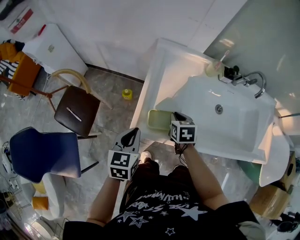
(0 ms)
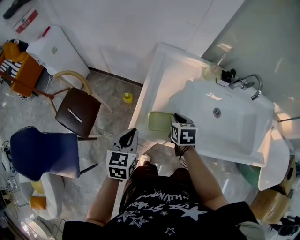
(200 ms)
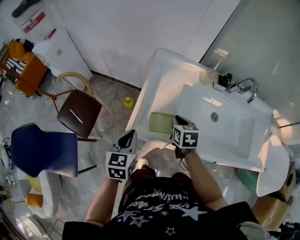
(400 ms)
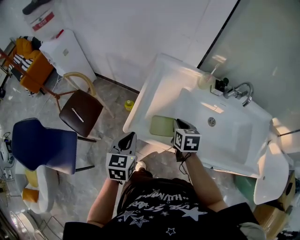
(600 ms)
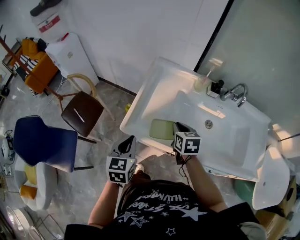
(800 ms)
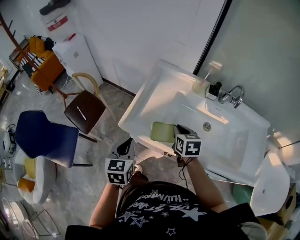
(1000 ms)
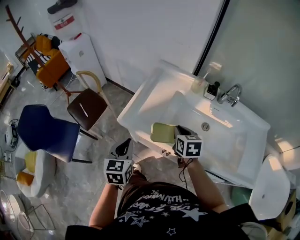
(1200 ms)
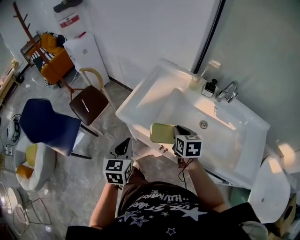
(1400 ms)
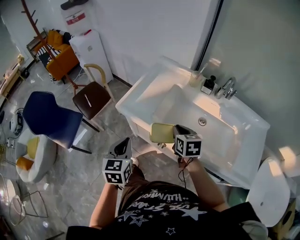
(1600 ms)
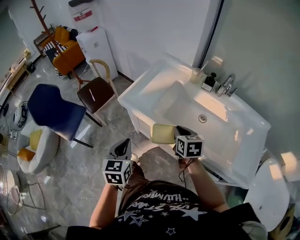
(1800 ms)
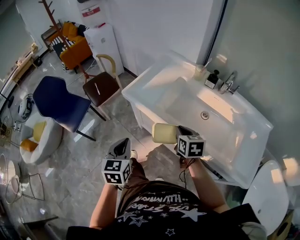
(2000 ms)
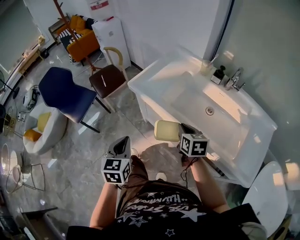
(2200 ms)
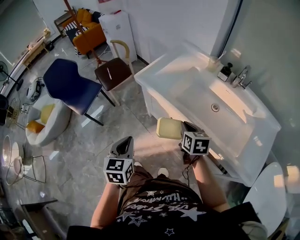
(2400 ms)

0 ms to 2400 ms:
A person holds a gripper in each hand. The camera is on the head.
0 ms to 1200 ms: The right gripper goes some 20 cm to the right, upward and backward. The left gripper heads backward, to the right and upward, covering approximately 20 cm, and changes its angle by roughly 20 degrees.
1200 ms to 2400 ms: The grippers both shift backward by about 20 cm.

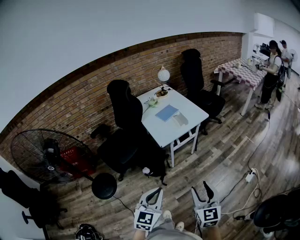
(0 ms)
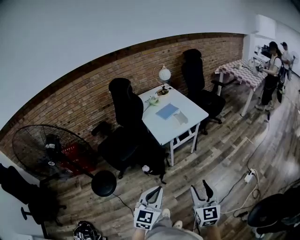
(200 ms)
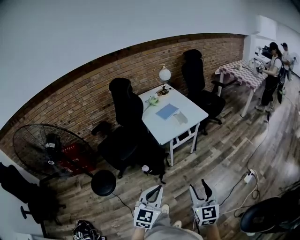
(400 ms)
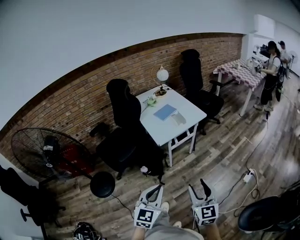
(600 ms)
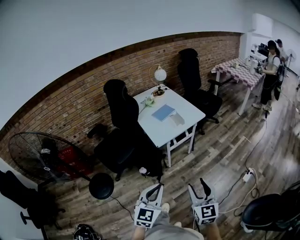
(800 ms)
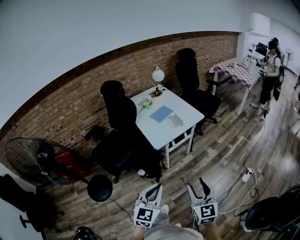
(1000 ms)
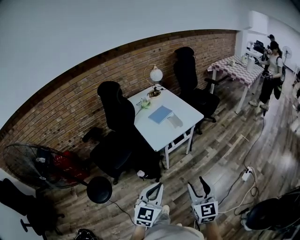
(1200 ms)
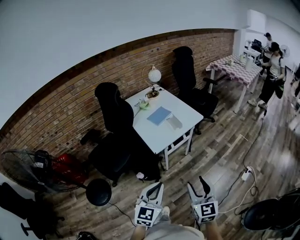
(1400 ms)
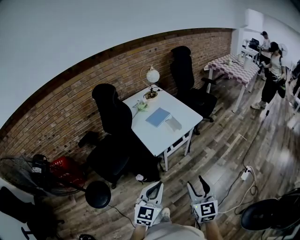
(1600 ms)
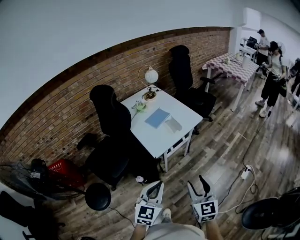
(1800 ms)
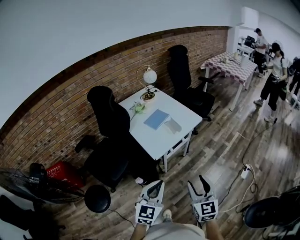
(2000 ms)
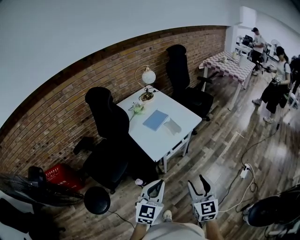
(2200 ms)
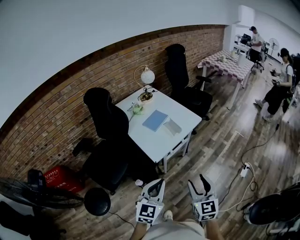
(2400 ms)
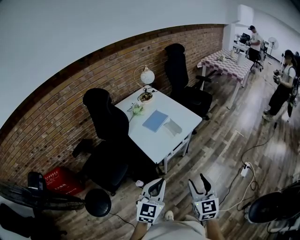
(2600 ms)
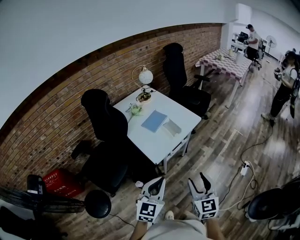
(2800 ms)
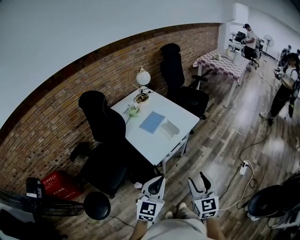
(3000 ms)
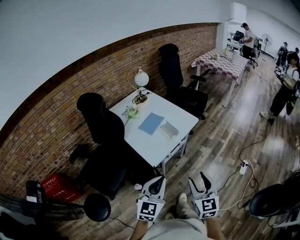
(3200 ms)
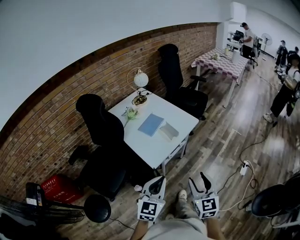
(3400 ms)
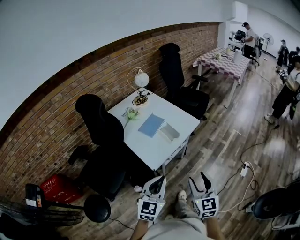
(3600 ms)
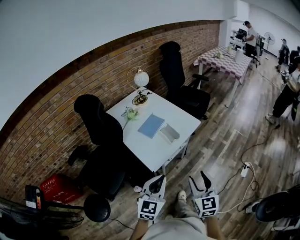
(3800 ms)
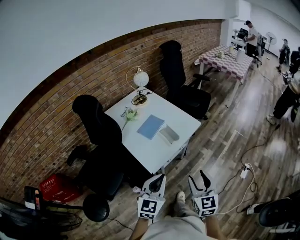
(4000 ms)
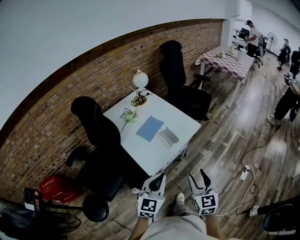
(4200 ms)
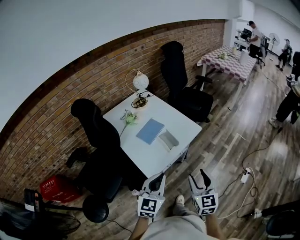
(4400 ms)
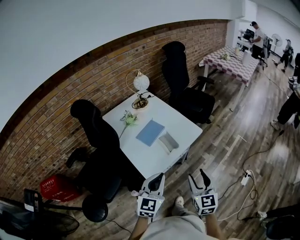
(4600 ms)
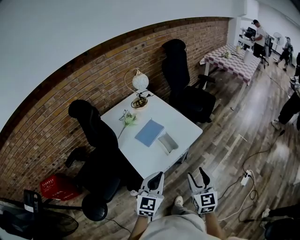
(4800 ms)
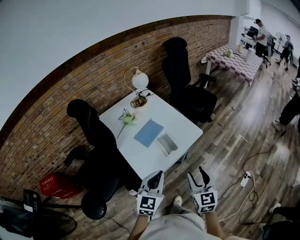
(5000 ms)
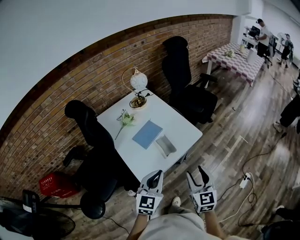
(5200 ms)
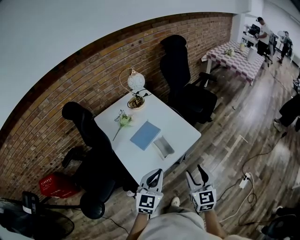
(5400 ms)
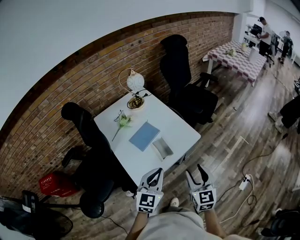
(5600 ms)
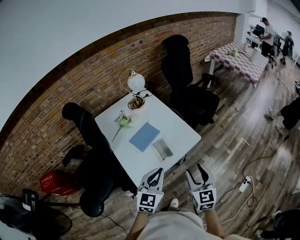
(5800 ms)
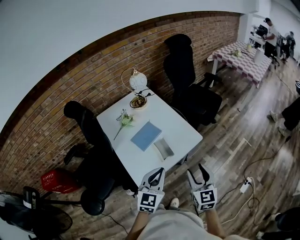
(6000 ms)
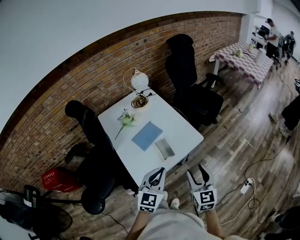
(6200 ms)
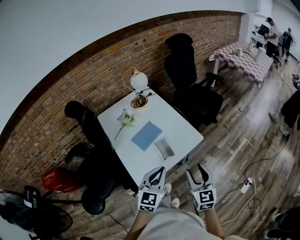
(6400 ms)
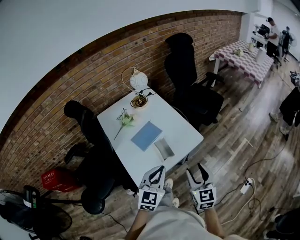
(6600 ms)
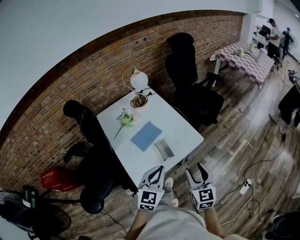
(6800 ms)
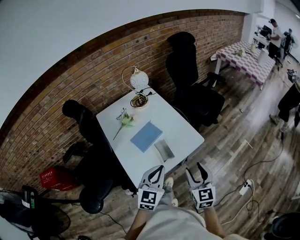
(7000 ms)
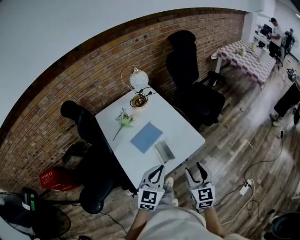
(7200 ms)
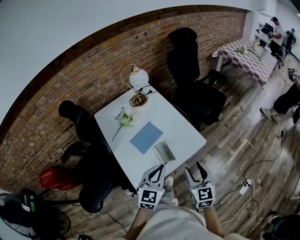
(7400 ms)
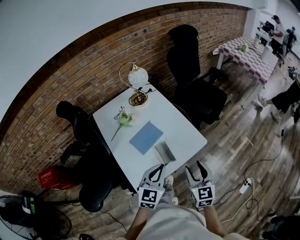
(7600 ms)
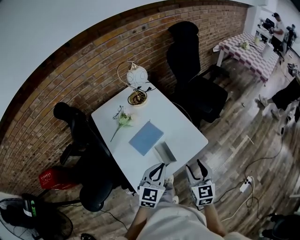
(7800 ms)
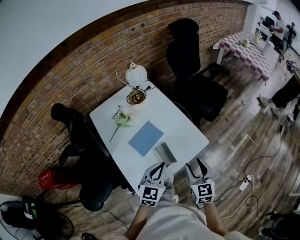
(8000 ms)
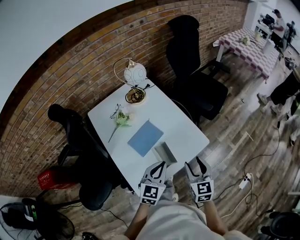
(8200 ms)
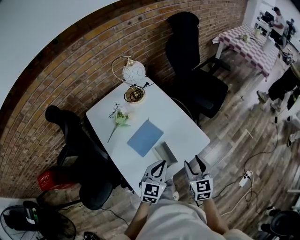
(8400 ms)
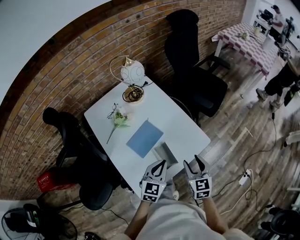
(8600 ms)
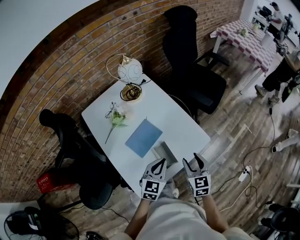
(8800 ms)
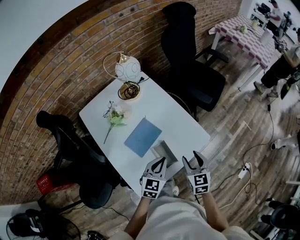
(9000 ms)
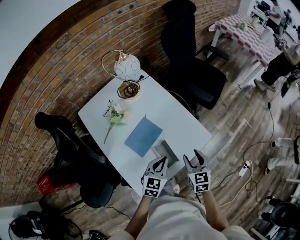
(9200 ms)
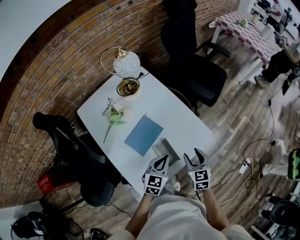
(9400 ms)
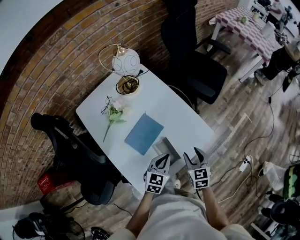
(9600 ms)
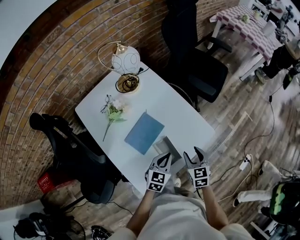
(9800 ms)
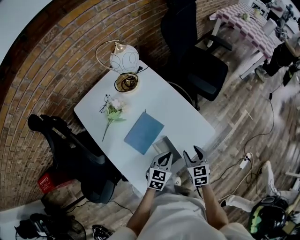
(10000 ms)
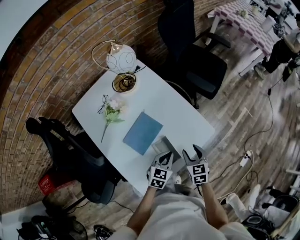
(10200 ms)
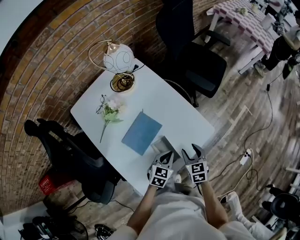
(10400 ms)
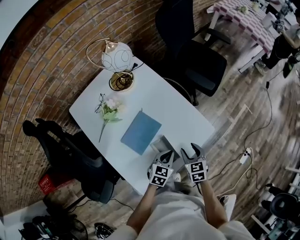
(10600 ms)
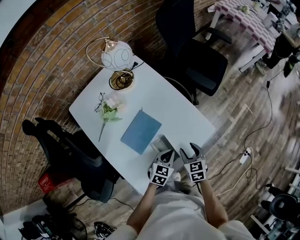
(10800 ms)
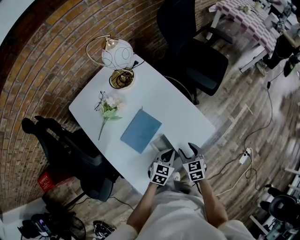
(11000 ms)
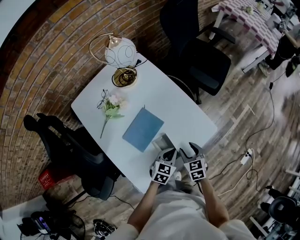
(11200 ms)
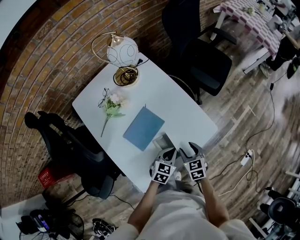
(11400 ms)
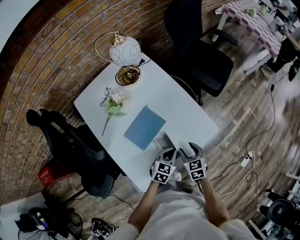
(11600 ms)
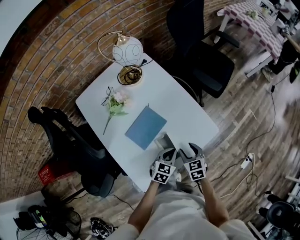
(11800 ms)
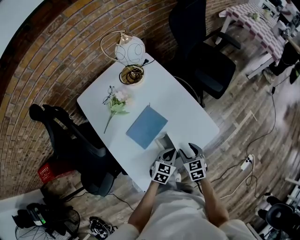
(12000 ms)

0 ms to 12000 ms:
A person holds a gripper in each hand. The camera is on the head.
0 ms to 1600 ms: Both grippers travel together forward, some 15 cm.
1600 ms to 3000 ms: Both grippers move forward, approximately 10 cm.
3000 ms to 4400 ms: The two grippers go some 15 cm forward.
4400 ms to 6000 ms: The left gripper goes about 15 cm forward and to the right. Meanwhile the right gripper shifts approximately 15 cm forward.
6000 ms to 7600 ms: The grippers both shift forward by about 10 cm.
7600 ms to 9000 ms: The right gripper is displaced forward and downward by some 15 cm, while the left gripper heads downward and forward, covering some 15 cm.
9000 ms to 10400 ms: Both grippers travel together downward, about 10 cm.
10400 ms to 12000 ms: The grippers stay close to where they were, moving slightly.

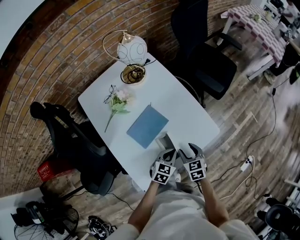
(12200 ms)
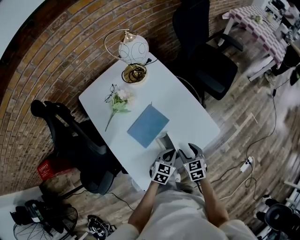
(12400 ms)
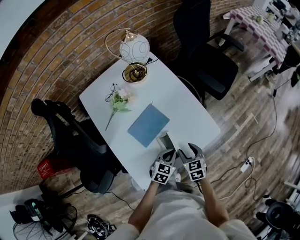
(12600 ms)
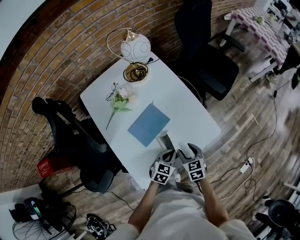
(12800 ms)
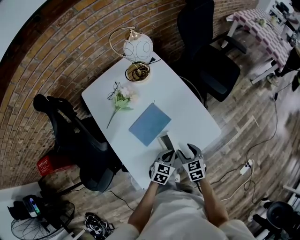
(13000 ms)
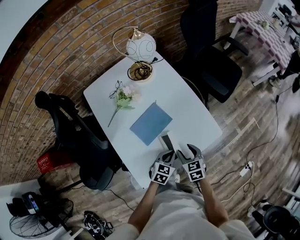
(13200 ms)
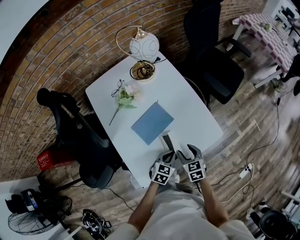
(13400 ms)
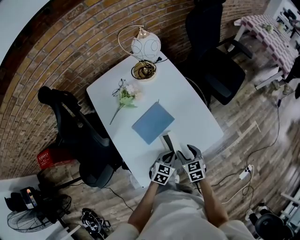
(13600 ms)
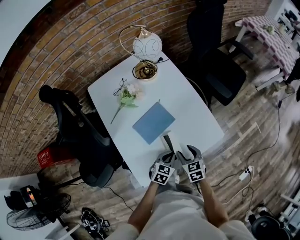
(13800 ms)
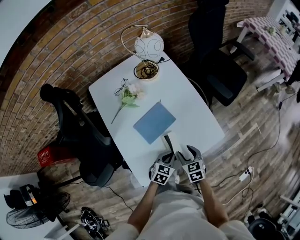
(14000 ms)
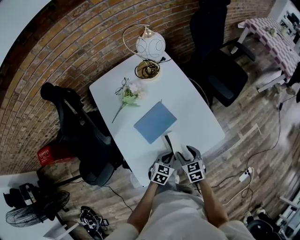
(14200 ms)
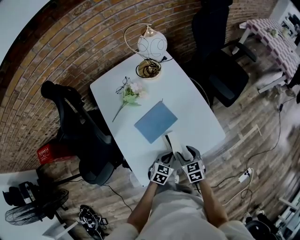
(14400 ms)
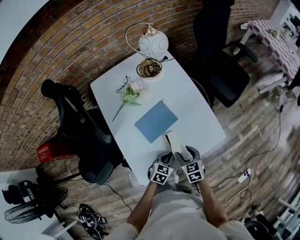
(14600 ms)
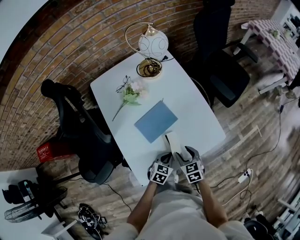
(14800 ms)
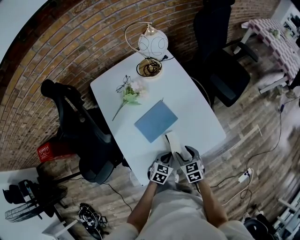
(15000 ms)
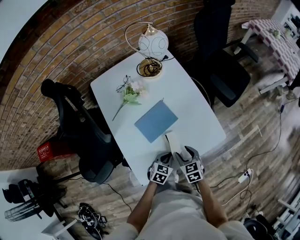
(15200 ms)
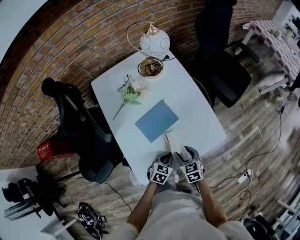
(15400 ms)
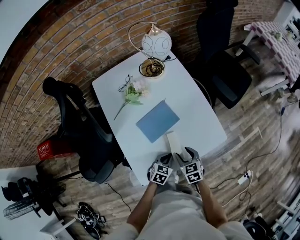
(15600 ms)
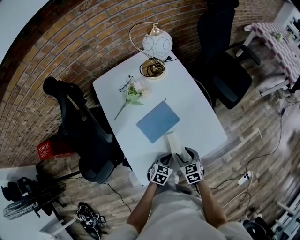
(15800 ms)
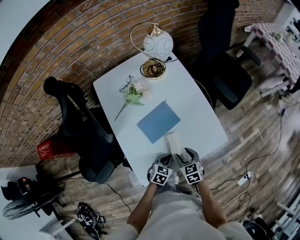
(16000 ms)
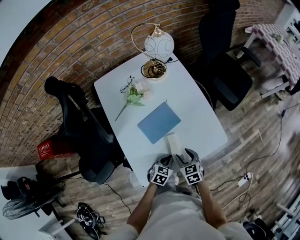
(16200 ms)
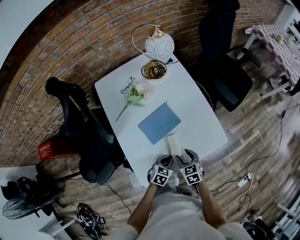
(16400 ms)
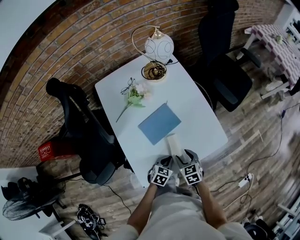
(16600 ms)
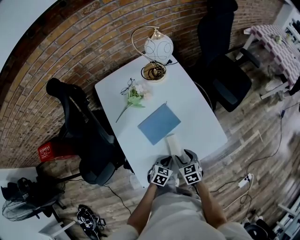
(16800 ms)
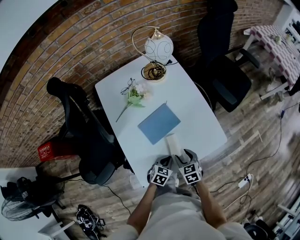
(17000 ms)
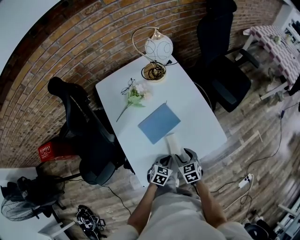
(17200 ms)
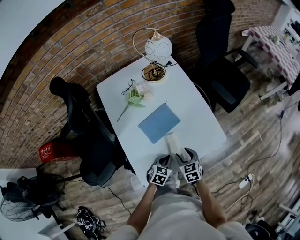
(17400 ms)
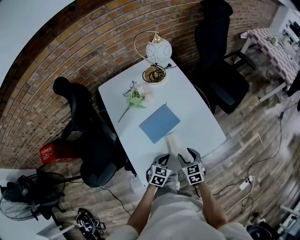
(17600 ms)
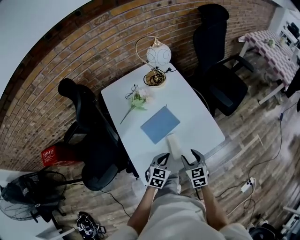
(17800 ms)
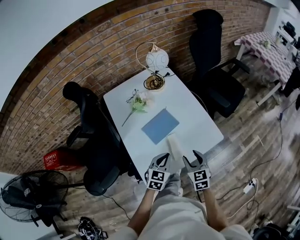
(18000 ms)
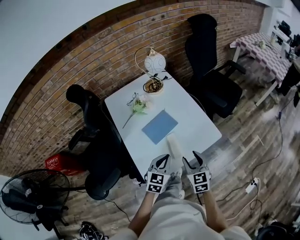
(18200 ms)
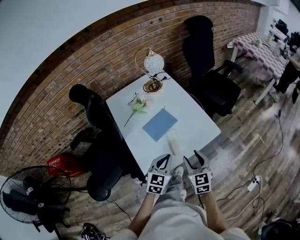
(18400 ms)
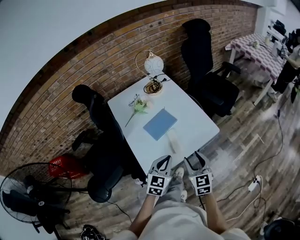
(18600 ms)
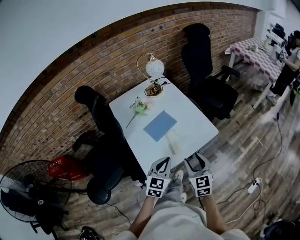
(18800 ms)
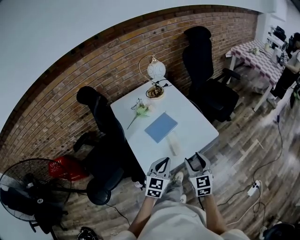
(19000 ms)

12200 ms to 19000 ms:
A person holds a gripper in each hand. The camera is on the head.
12200 ms to 13600 ms: The grippers stay close to where they were, moving slightly.
13600 ms to 17600 ms: The grippers move only a little.
17600 ms to 19000 ms: Both grippers travel together upward and backward, roughly 20 cm. The right gripper turns by some 30 degrees, while the left gripper rotates about 30 degrees.

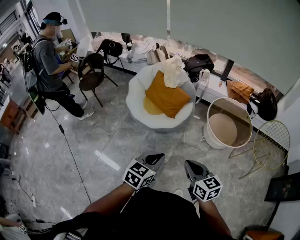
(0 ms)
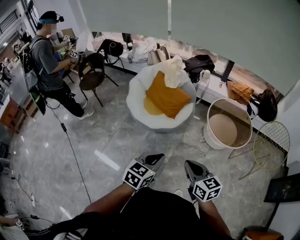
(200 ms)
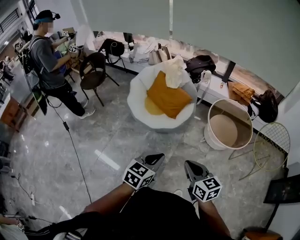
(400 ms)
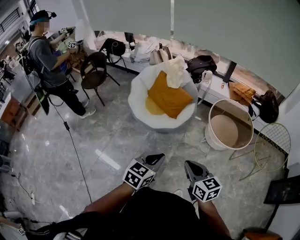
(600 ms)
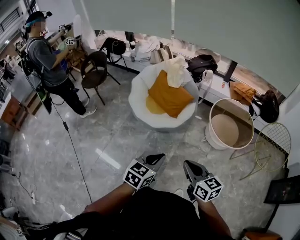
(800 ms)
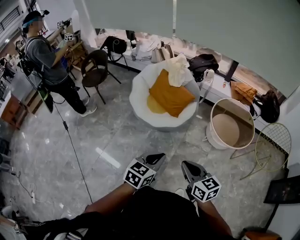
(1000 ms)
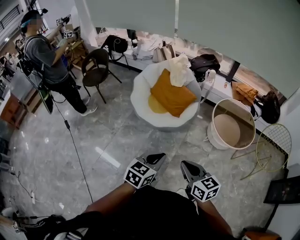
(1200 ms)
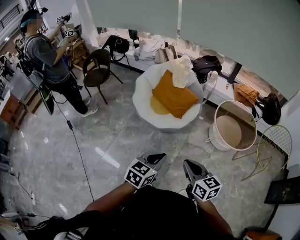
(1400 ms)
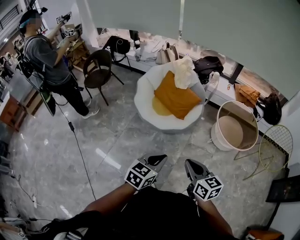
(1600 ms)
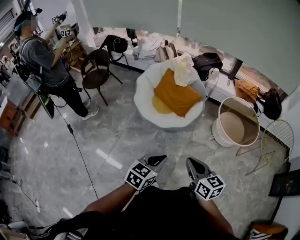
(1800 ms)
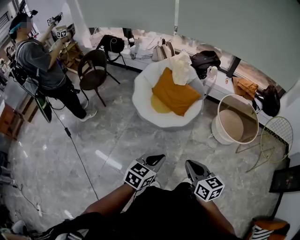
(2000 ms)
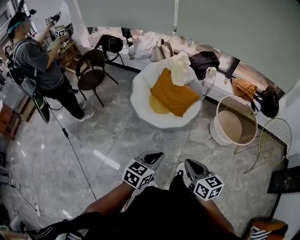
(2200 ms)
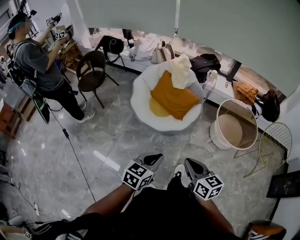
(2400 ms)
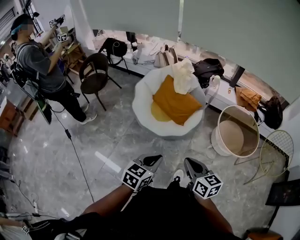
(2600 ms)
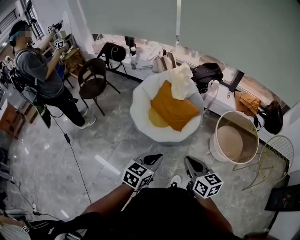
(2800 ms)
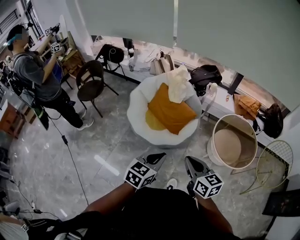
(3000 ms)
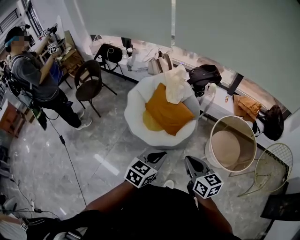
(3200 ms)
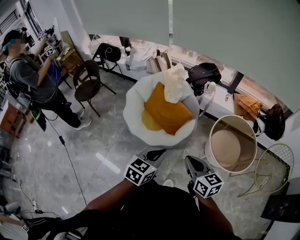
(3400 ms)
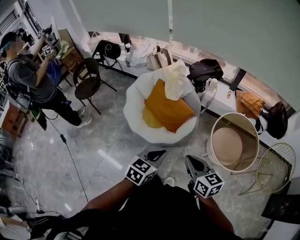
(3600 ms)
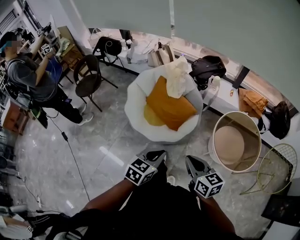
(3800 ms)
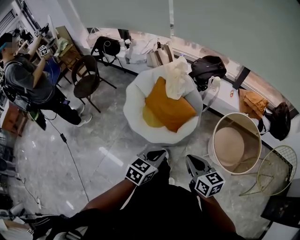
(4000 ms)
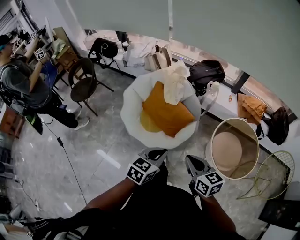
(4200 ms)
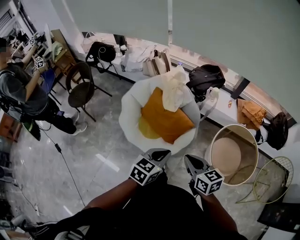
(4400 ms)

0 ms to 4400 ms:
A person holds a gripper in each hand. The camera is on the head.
0 ms to 1400 ms: The two grippers go about 10 cm to the left.
1400 ms to 3000 ms: The two grippers go approximately 20 cm forward.
3000 ms to 4400 ms: The grippers both shift forward by about 20 cm.
